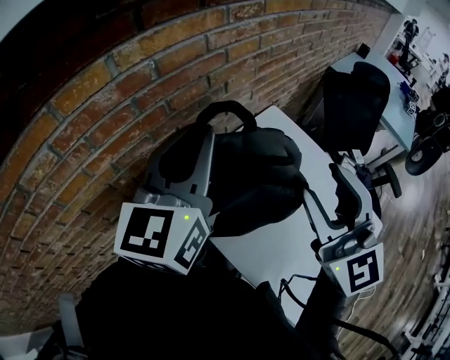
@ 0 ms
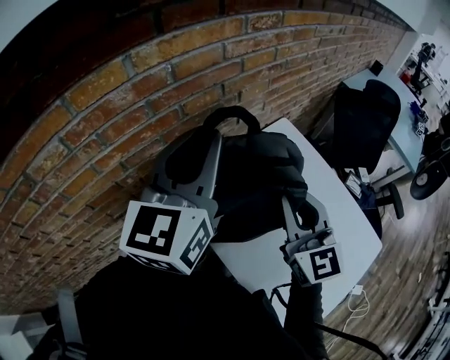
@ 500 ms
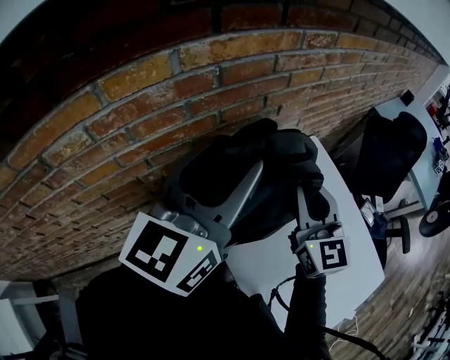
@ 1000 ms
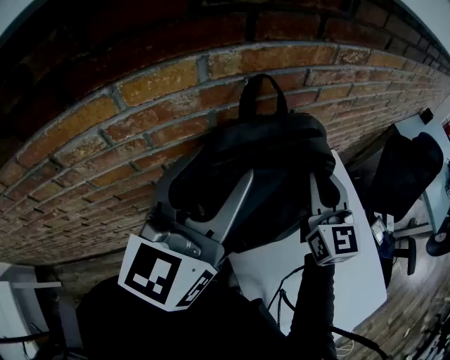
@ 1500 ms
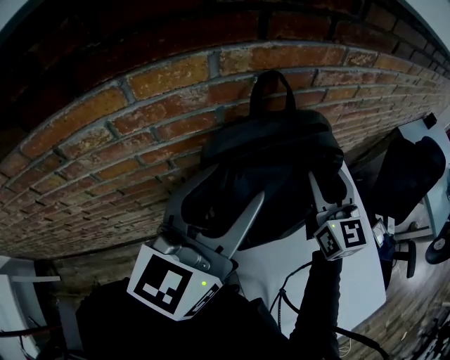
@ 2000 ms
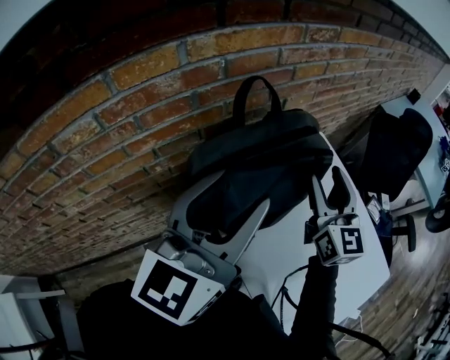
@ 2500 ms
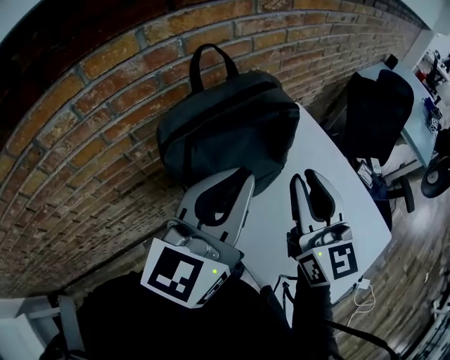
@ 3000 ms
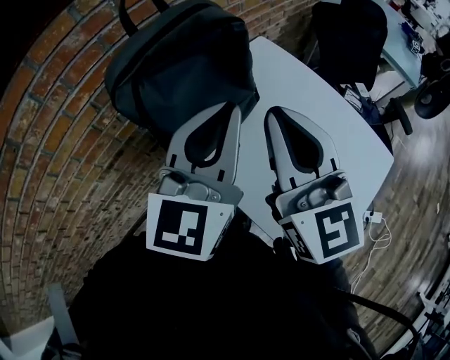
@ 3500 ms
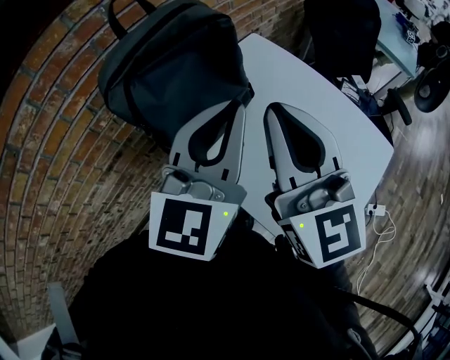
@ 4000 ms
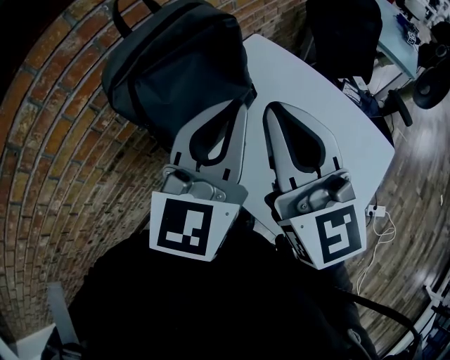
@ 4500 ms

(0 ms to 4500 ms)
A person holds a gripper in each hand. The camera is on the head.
0 ms - 2000 ms: The right gripper moves forward and downward, some 20 cm, turns by roughly 20 degrees, and closes, then reopens. The left gripper travels to the left by approximately 5 cm, and opens its fingers.
2000 ms - 4500 ms: The left gripper moves to the right and backward, about 25 cm, swivels some 20 degrees, and closes its fingers. The right gripper is displaced backward by roughly 25 cm, changes its angle by roughly 20 degrees, and closes up.

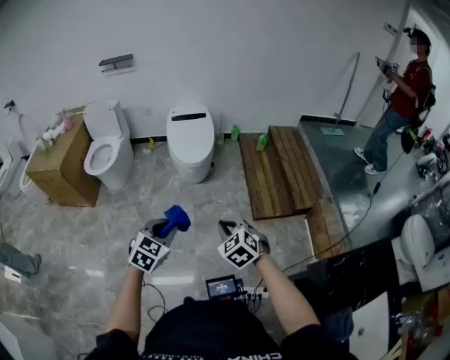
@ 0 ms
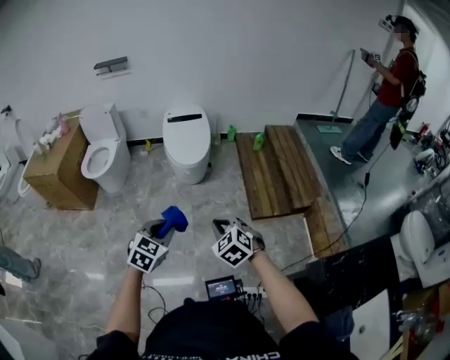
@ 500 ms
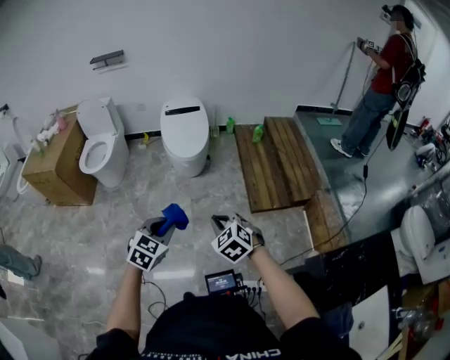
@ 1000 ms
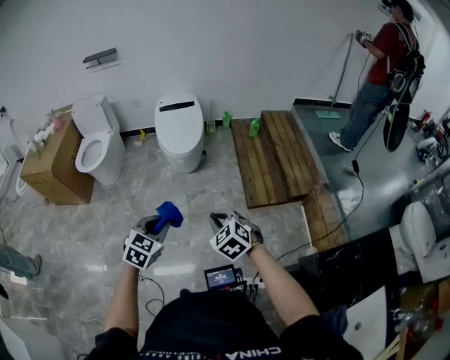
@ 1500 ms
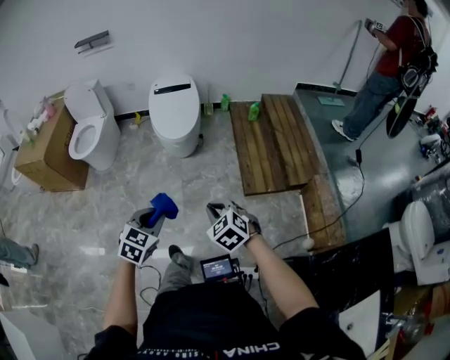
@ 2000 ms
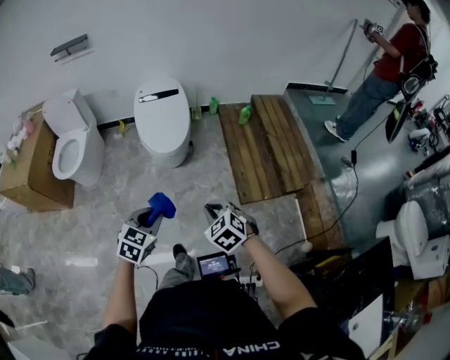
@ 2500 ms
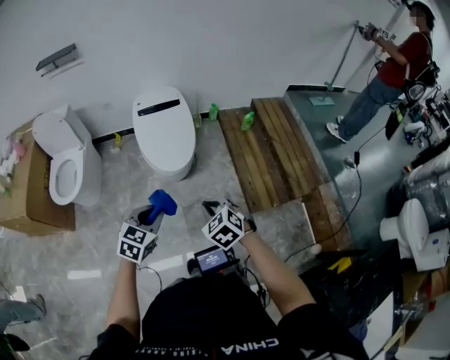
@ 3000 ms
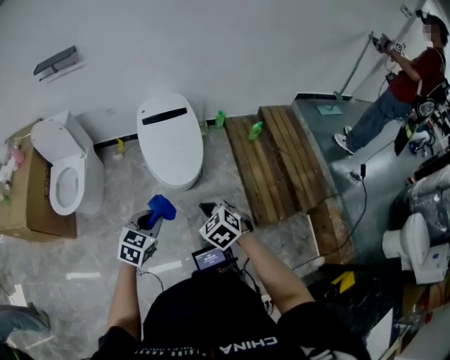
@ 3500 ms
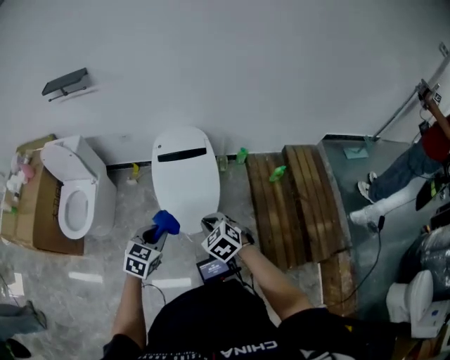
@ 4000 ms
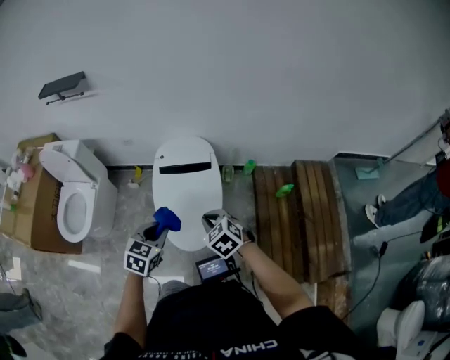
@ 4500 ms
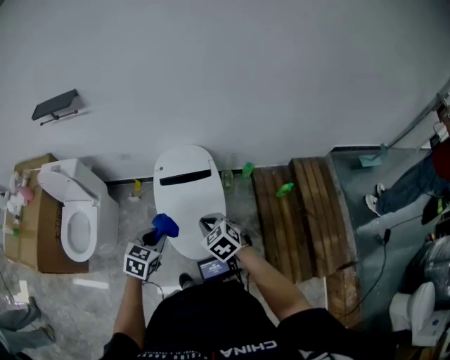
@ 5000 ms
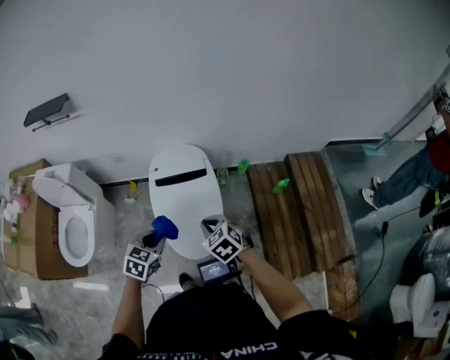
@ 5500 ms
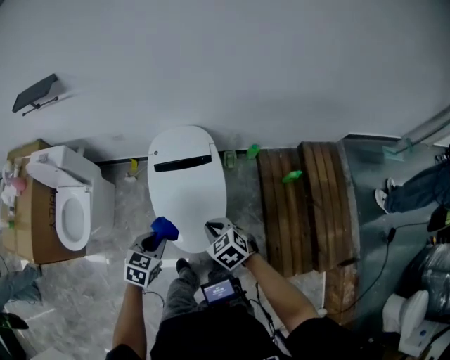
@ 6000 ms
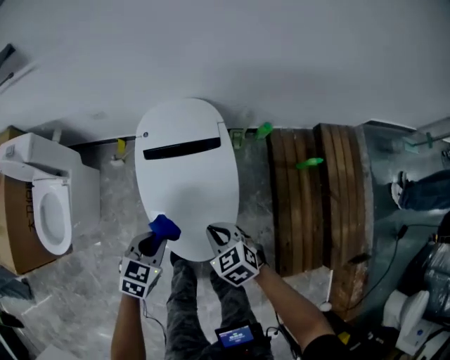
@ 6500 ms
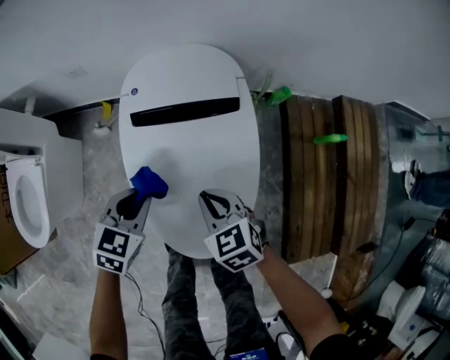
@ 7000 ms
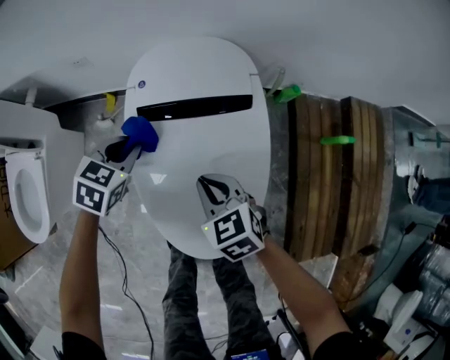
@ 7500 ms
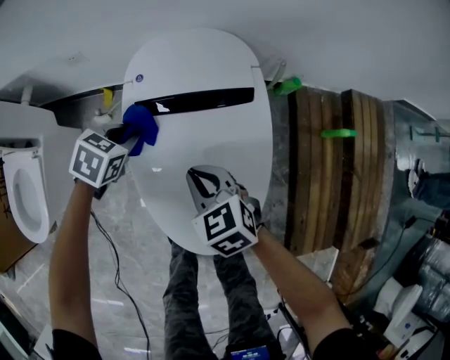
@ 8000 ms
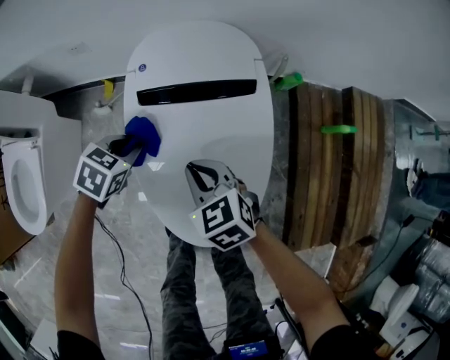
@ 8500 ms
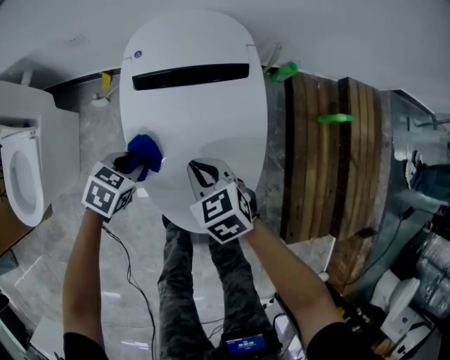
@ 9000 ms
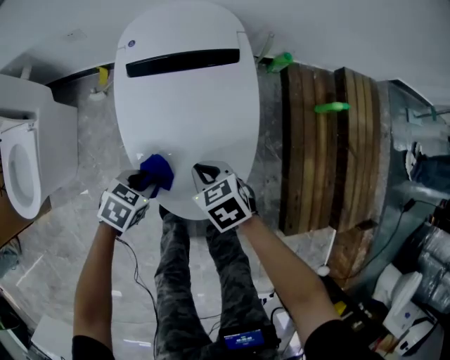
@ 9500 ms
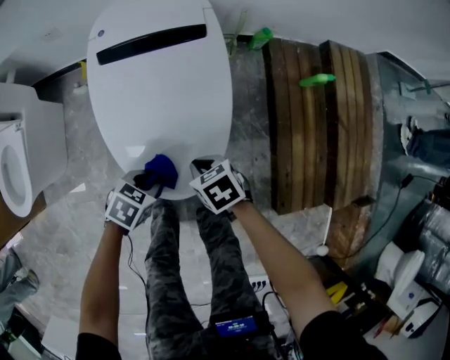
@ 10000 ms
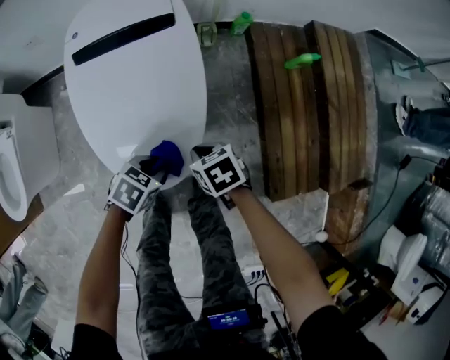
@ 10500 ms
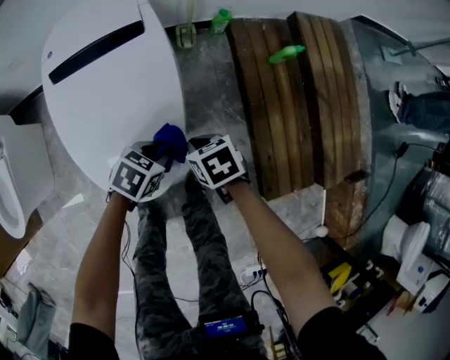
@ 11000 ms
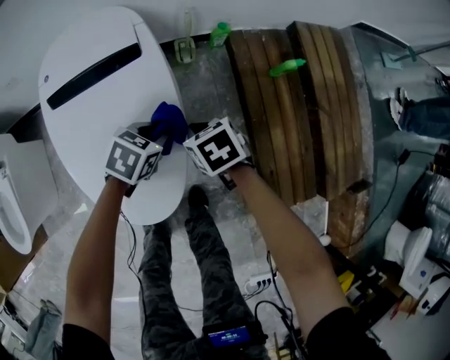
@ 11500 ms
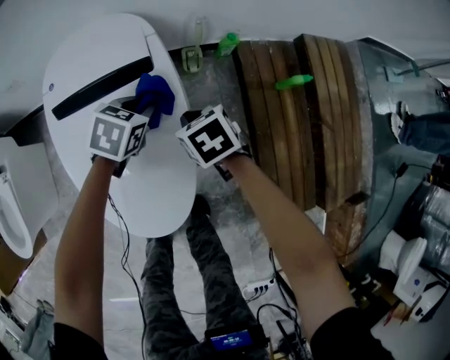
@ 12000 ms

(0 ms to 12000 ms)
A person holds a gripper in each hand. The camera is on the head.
0 ms - 2000 ms: Both grippers travel together to the right and downward, some 10 cm.
2000 ms - 4000 ms: Both grippers are carried forward, approximately 60 cm.
4000 ms - 6000 ms: Both grippers move forward, approximately 15 cm.
6000 ms - 8000 ms: The left gripper moves downward and forward, approximately 40 cm. Meanwhile the right gripper travels downward, forward and to the left by some 35 cm.
8000 ms - 10000 ms: The right gripper ends up approximately 25 cm from where it was, and swivels approximately 30 degrees; the left gripper changes place by some 35 cm.
10000 ms - 12000 ms: The right gripper moves some 25 cm. Meanwhile the left gripper ends up approximately 35 cm from where it was.

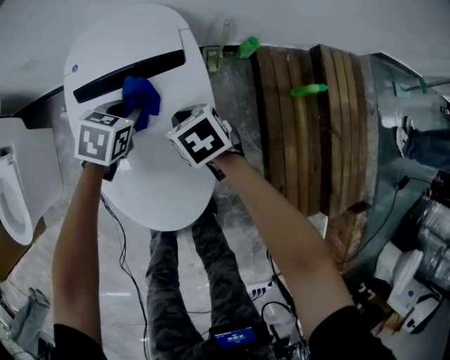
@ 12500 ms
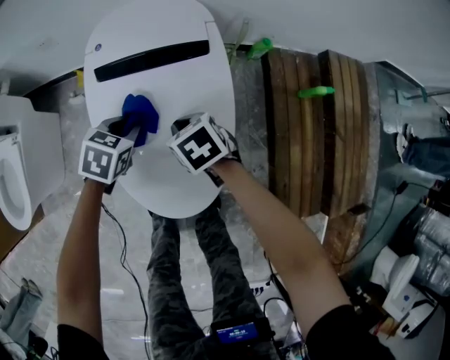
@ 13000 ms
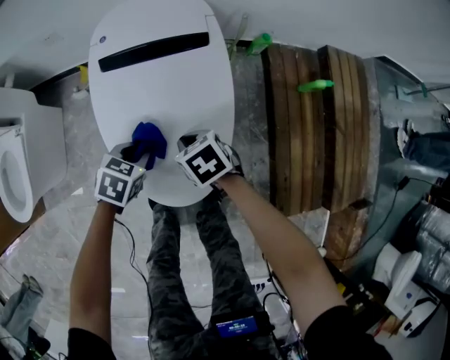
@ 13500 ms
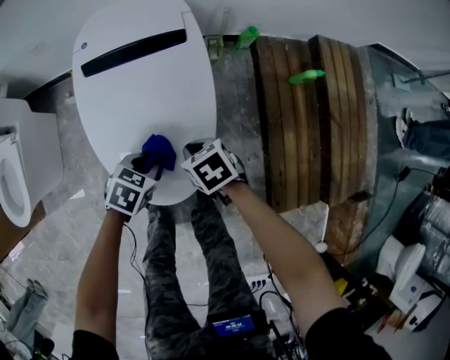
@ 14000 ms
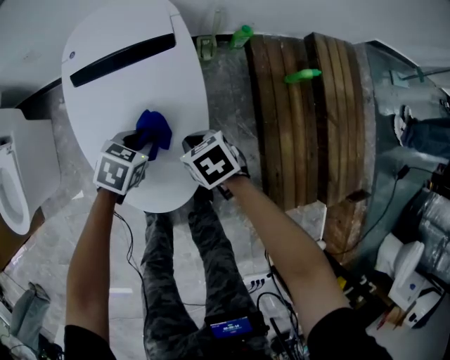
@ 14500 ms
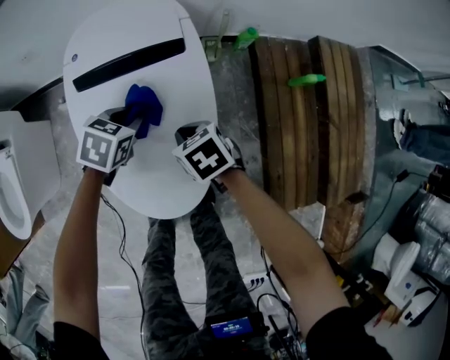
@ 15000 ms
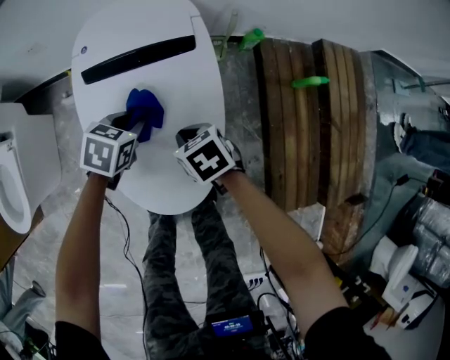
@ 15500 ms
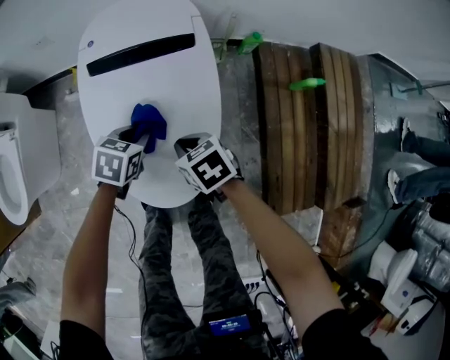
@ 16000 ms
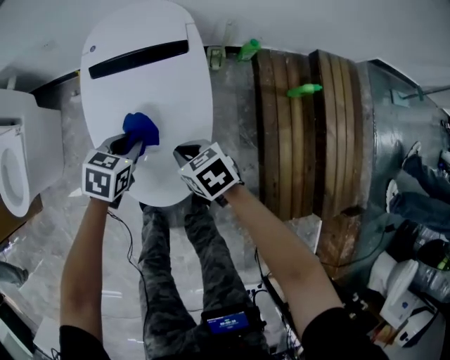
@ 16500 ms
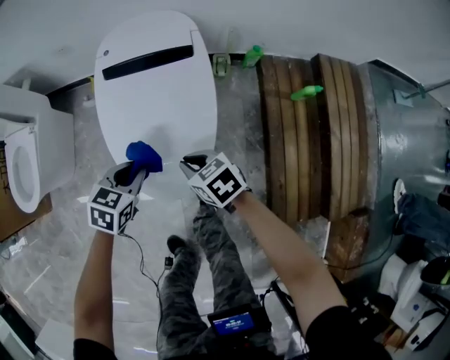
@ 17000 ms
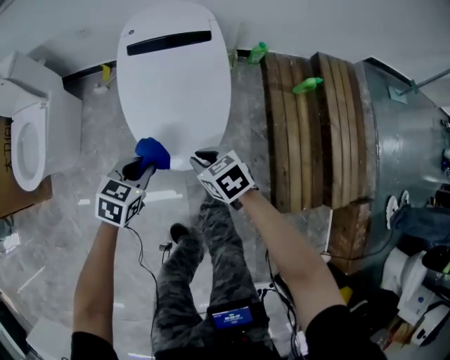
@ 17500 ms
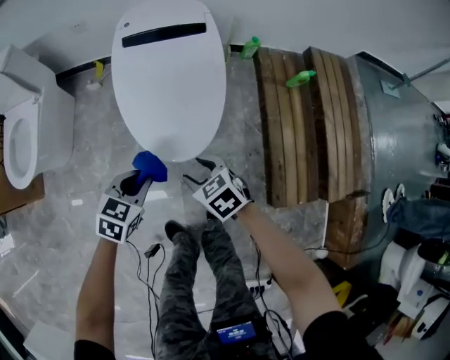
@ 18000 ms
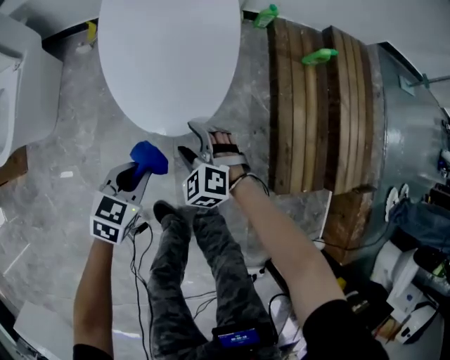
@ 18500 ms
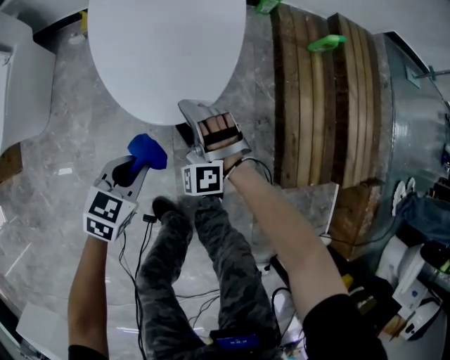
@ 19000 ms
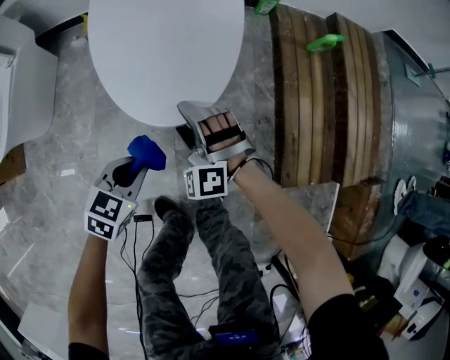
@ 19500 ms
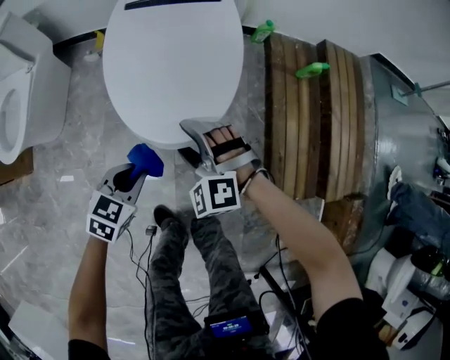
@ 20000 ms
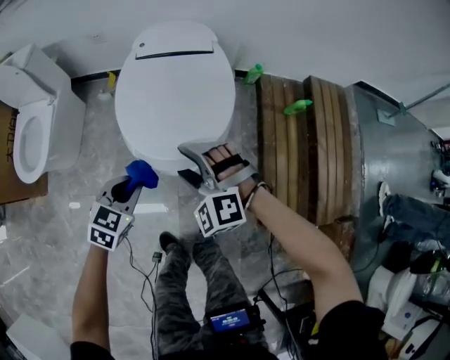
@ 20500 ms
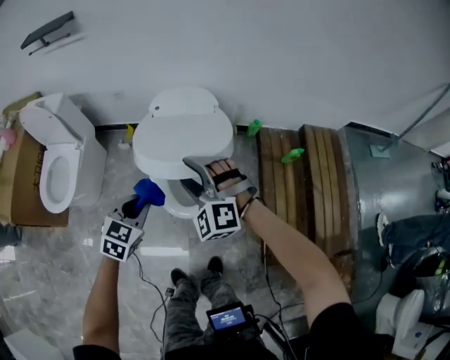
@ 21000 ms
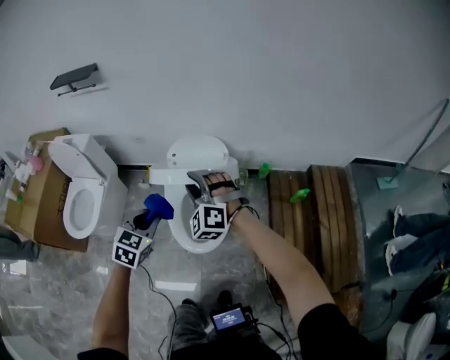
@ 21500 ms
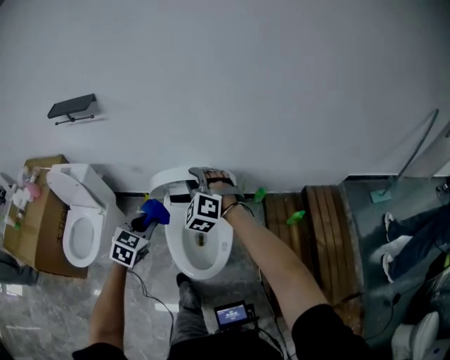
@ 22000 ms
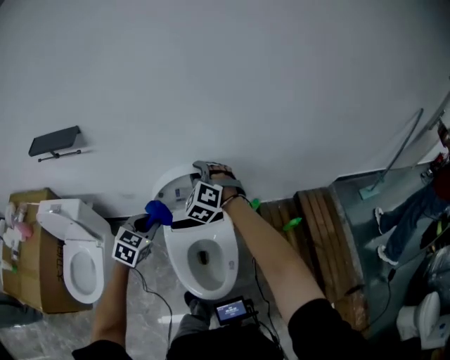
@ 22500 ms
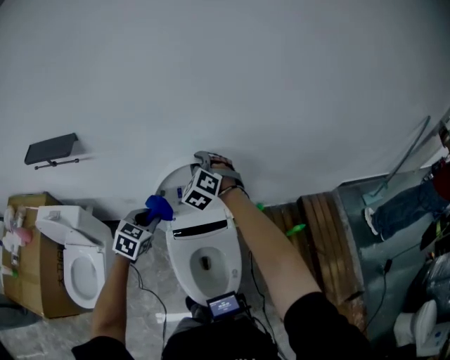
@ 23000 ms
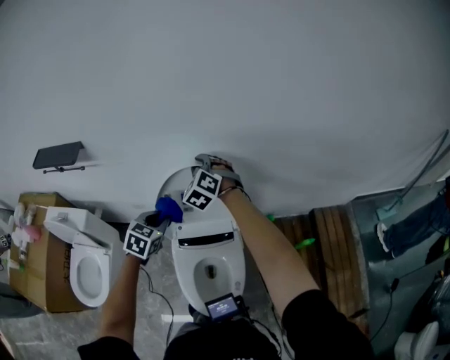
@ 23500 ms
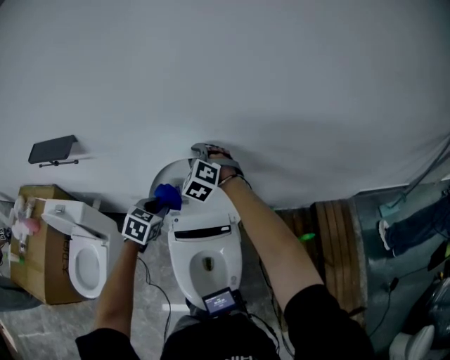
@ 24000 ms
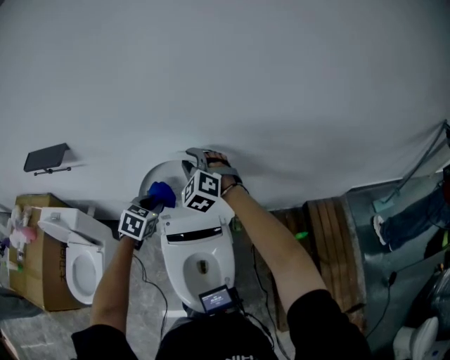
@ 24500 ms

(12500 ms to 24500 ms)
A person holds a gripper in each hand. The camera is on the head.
12500 ms - 14500 ms: The right gripper ends up some 10 cm from where it was.
14500 ms - 16500 ms: The right gripper travels forward and back again, some 5 cm each way. The left gripper reaches roughly 10 cm forward, then returns.
16500 ms - 18500 ms: The left gripper shifts roughly 30 cm backward. Meanwhile the right gripper travels backward and downward by some 20 cm, twists about 50 degrees counterclockwise, seen from behind, and opens its fingers.
18500 ms - 20500 ms: The left gripper travels upward by some 20 cm. Meanwhile the right gripper moves upward, roughly 30 cm, and rotates some 30 degrees.
20500 ms - 22500 ms: Both grippers move forward and upward, about 50 cm. The right gripper swivels roughly 30 degrees, and closes its fingers.
22500 ms - 24500 ms: Both grippers move forward, about 15 cm.
